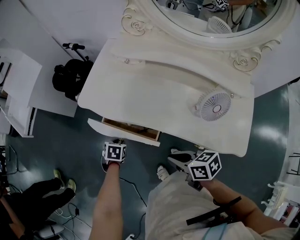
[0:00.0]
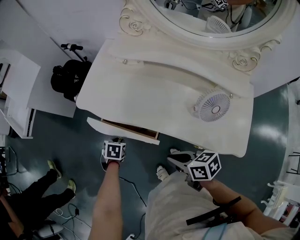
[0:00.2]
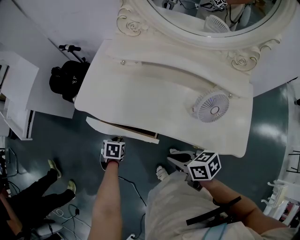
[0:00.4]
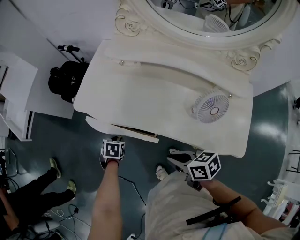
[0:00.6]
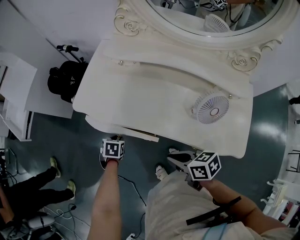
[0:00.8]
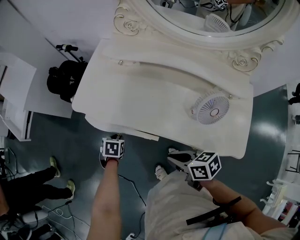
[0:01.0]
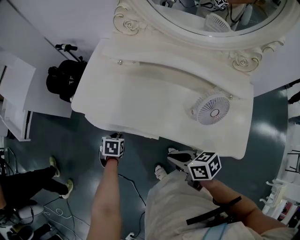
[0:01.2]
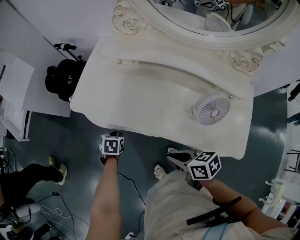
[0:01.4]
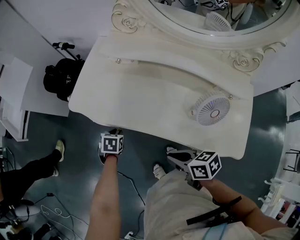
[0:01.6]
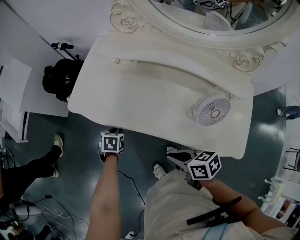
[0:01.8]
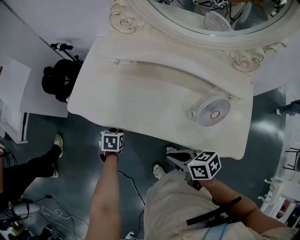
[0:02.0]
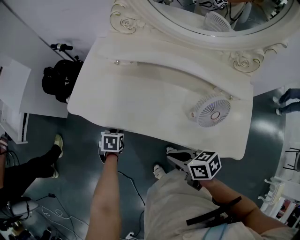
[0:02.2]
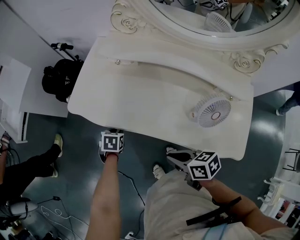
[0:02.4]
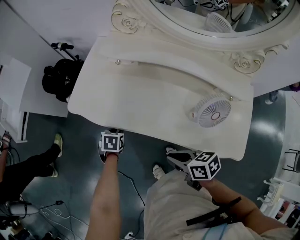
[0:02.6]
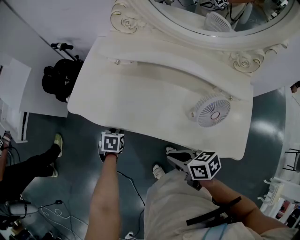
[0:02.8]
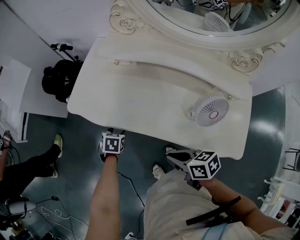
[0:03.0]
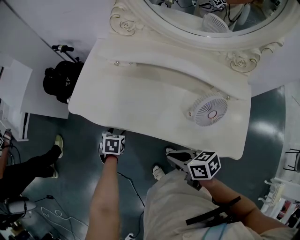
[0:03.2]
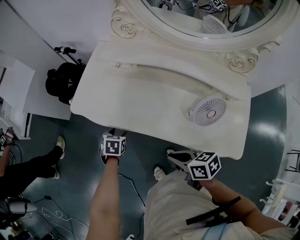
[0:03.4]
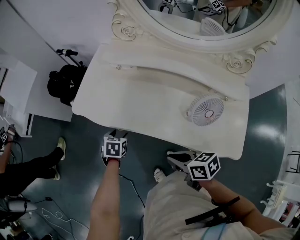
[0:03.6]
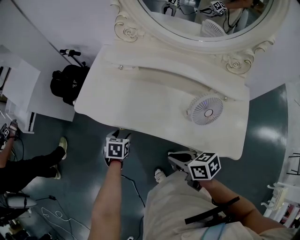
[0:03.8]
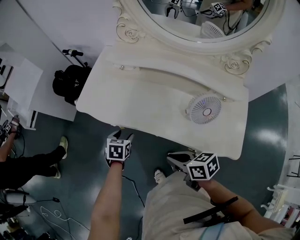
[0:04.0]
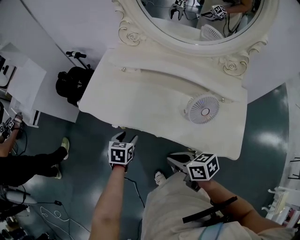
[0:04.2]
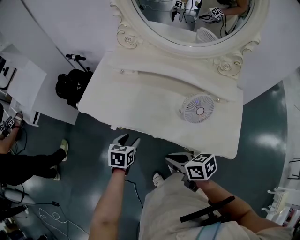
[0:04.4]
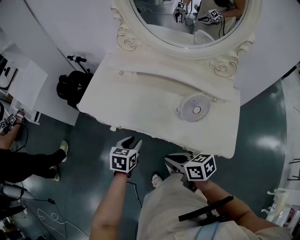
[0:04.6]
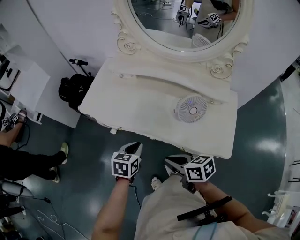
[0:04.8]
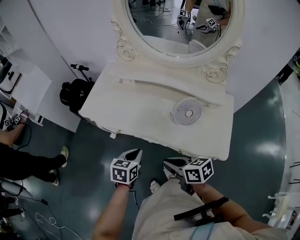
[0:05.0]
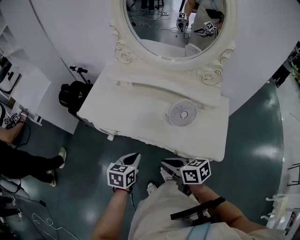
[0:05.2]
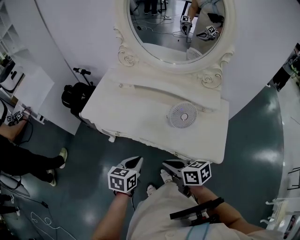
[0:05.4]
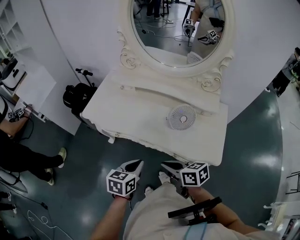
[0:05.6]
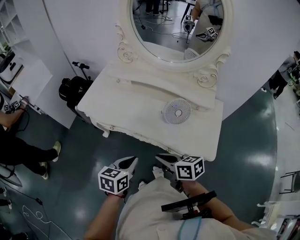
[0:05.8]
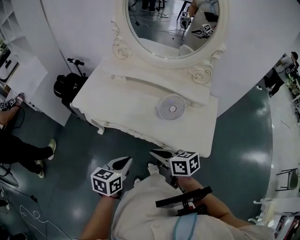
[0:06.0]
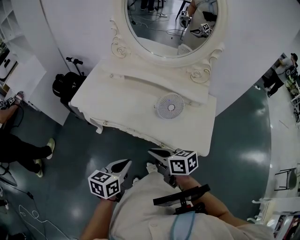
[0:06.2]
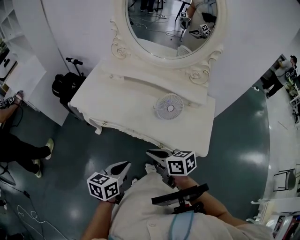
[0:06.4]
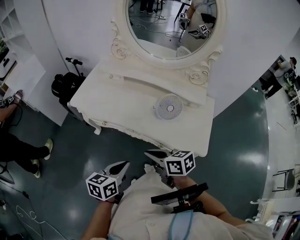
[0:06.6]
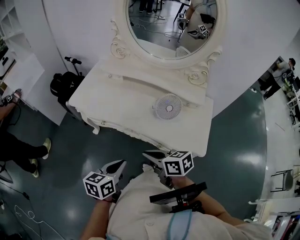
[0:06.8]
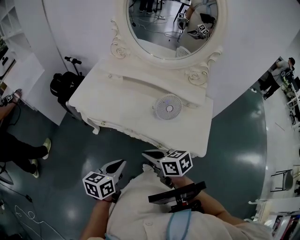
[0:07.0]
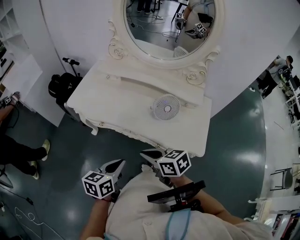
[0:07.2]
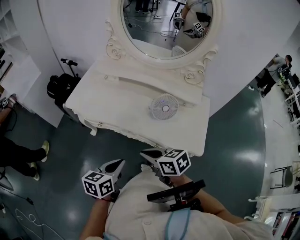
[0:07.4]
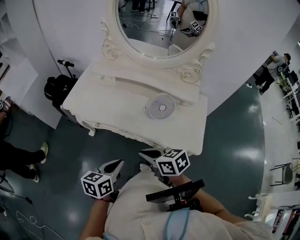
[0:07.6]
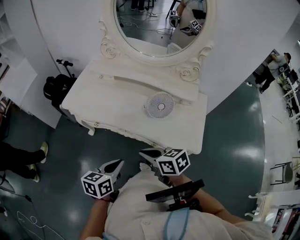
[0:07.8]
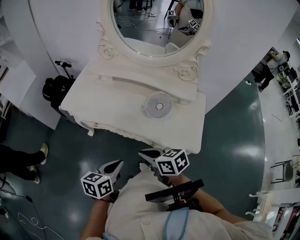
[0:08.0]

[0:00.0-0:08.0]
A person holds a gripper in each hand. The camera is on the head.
0.0 to 1.6 s: The left gripper heads to the right and forward, covering about 10 cm.
1.6 to 3.2 s: The left gripper opens up.
3.2 to 4.8 s: The left gripper heads upward, backward and to the right, covering roughly 25 cm, turns by some 20 degrees, and closes, while the right gripper shifts approximately 10 cm backward and upward.
4.8 to 6.4 s: The right gripper shifts about 5 cm upward, while the left gripper moves backward and upward, about 20 cm, and changes its angle by about 20 degrees.
6.4 to 8.0 s: The grippers make only small movements.

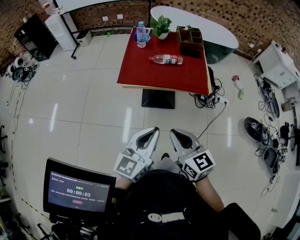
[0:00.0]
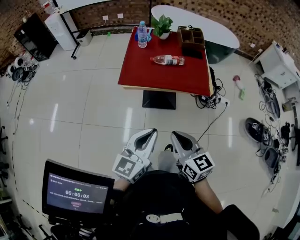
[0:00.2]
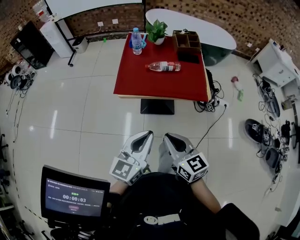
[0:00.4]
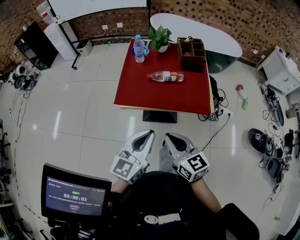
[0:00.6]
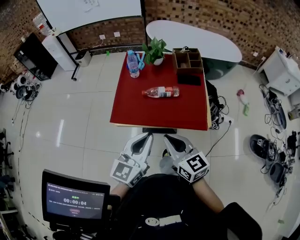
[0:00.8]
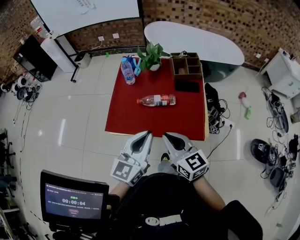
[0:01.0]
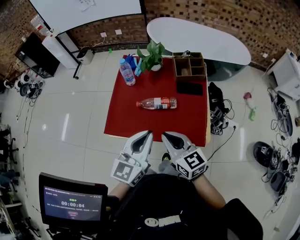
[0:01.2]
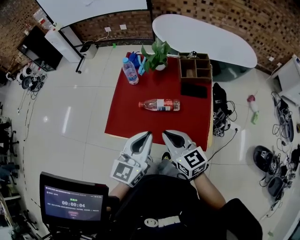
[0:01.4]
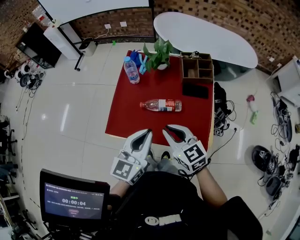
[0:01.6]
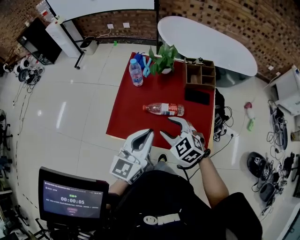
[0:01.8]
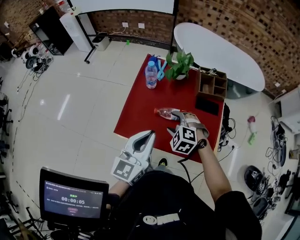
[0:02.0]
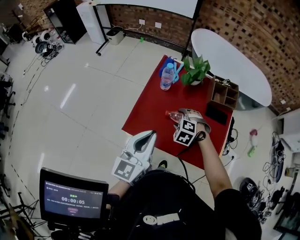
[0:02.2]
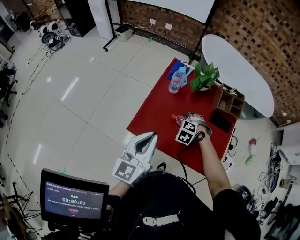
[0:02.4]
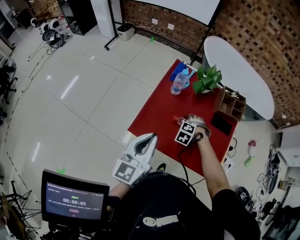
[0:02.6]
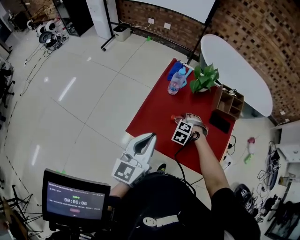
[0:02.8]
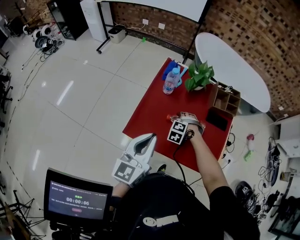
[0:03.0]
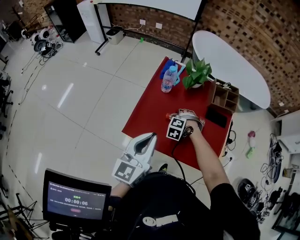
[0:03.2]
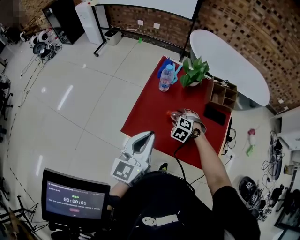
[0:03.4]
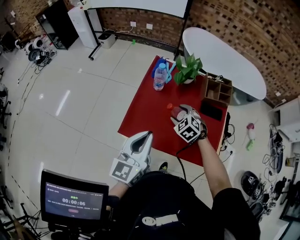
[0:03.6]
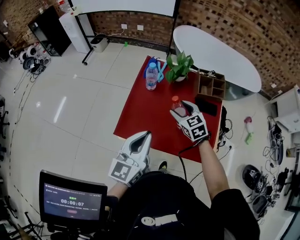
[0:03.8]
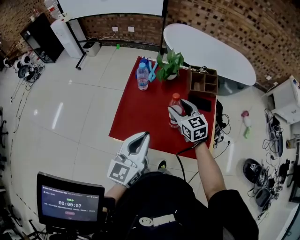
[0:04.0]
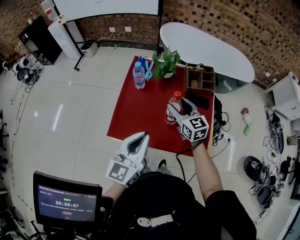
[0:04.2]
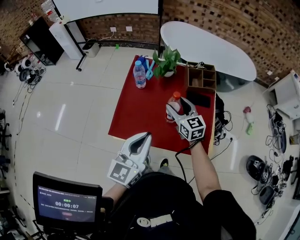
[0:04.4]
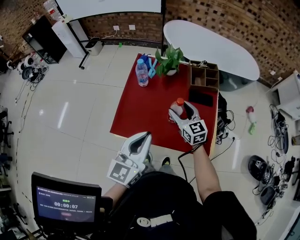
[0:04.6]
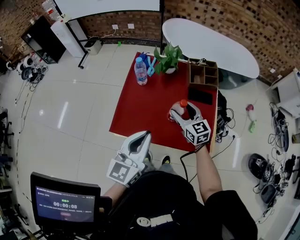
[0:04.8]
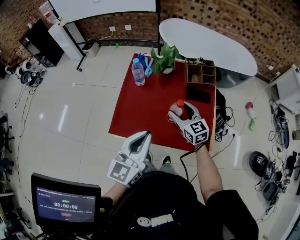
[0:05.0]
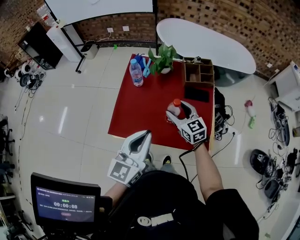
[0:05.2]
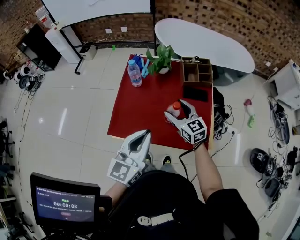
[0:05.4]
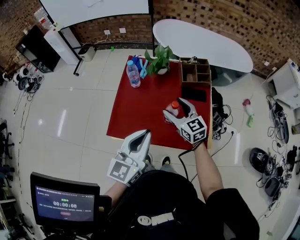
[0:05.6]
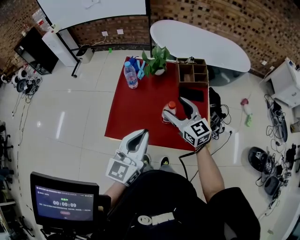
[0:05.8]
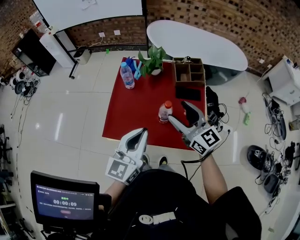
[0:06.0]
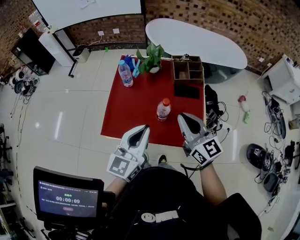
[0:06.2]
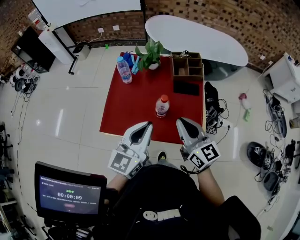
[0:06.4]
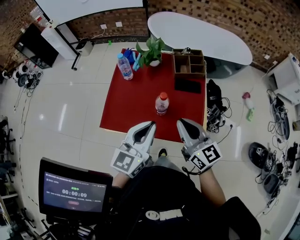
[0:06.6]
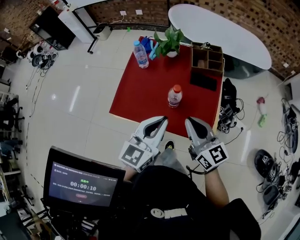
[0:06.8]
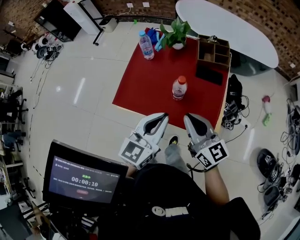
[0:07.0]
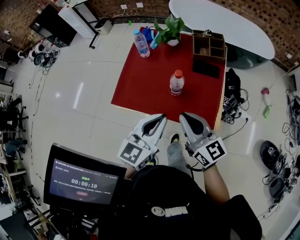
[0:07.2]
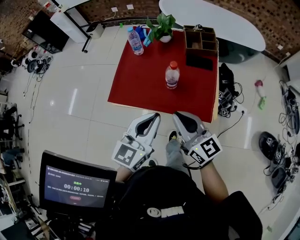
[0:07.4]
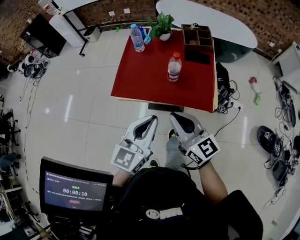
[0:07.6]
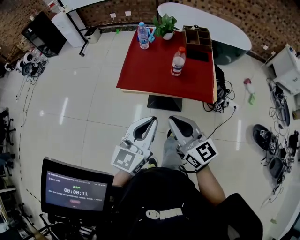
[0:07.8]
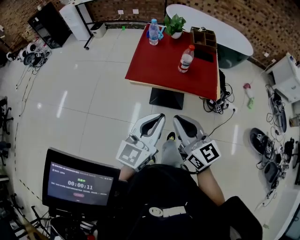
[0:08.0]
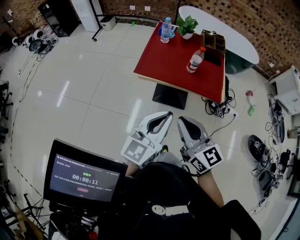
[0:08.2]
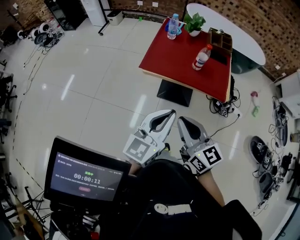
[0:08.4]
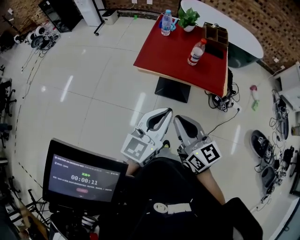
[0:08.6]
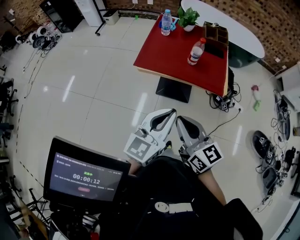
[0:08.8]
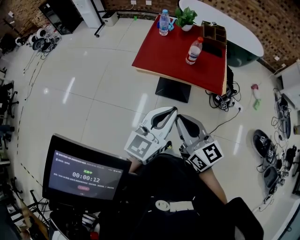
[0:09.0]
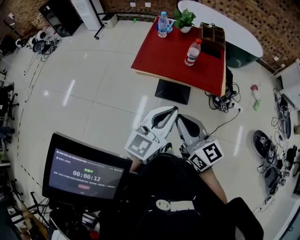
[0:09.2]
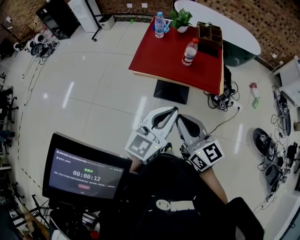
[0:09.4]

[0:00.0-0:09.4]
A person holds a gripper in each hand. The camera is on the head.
0.0 to 1.6 s: Both grippers travel together forward, some 35 cm.
1.6 to 3.2 s: The right gripper shifts roughly 25 cm downward, forward and to the left, tilts its fingers approximately 50 degrees downward, and opens up; the left gripper goes roughly 15 cm to the left.
3.2 to 4.8 s: The right gripper shifts about 20 cm upward and to the right, and angles its fingers upward, by roughly 50 degrees; the left gripper shifts approximately 10 cm to the right.
4.8 to 6.2 s: The left gripper changes place by about 5 cm. The right gripper goes some 15 cm upward and backward, and closes.
6.2 to 7.8 s: The right gripper travels backward and to the left by roughly 30 cm. The left gripper travels backward by roughly 25 cm.
7.8 to 9.4 s: The right gripper moves backward, about 5 cm. The left gripper moves some 5 cm.

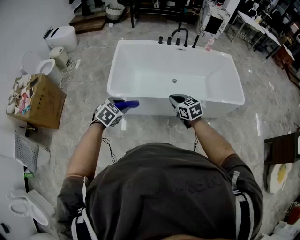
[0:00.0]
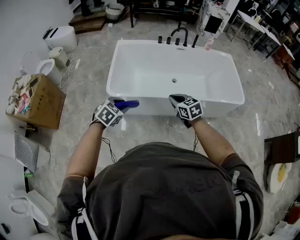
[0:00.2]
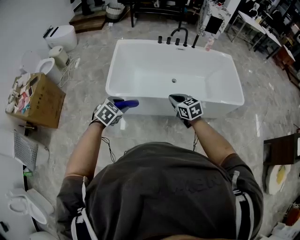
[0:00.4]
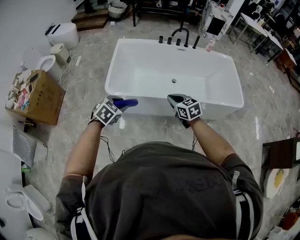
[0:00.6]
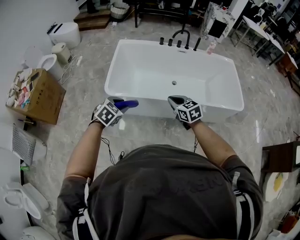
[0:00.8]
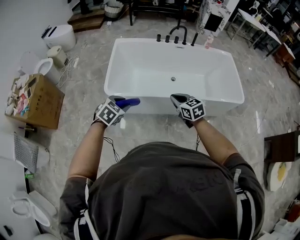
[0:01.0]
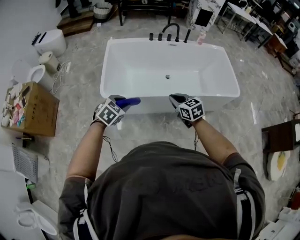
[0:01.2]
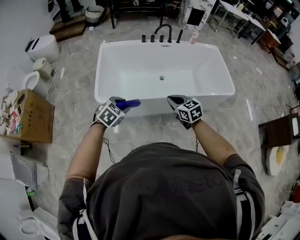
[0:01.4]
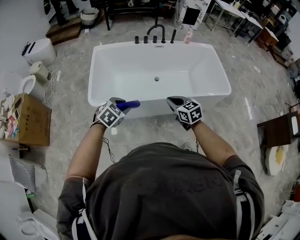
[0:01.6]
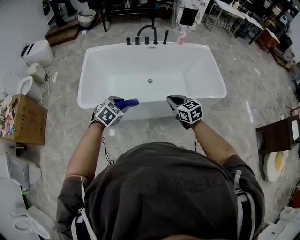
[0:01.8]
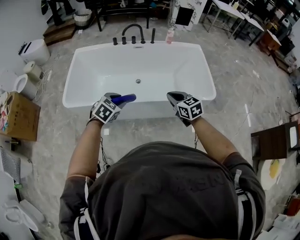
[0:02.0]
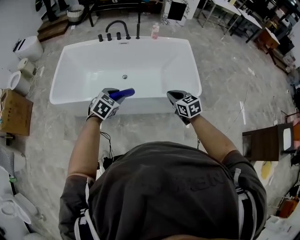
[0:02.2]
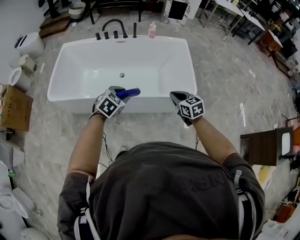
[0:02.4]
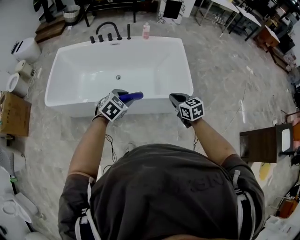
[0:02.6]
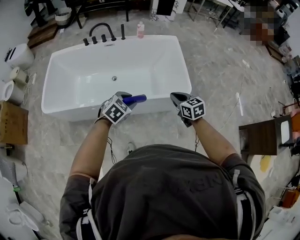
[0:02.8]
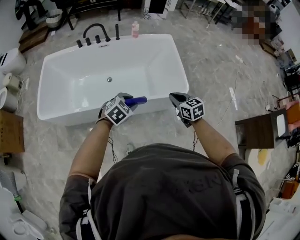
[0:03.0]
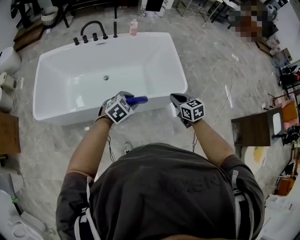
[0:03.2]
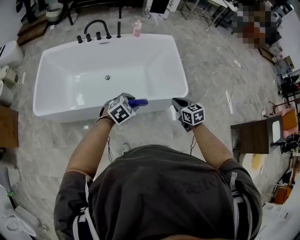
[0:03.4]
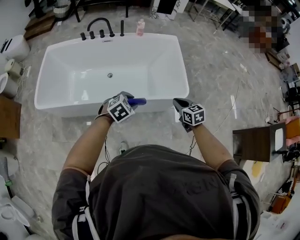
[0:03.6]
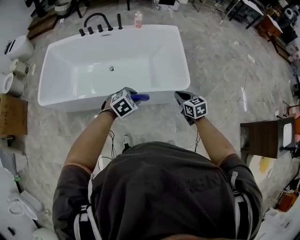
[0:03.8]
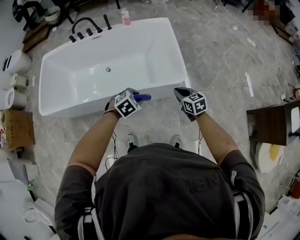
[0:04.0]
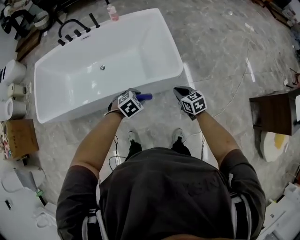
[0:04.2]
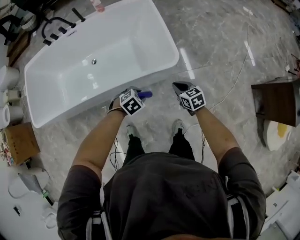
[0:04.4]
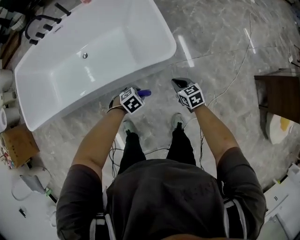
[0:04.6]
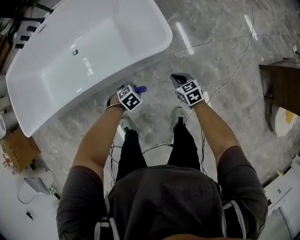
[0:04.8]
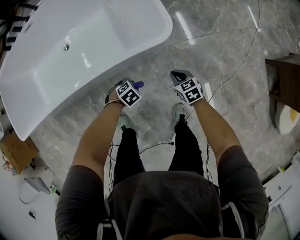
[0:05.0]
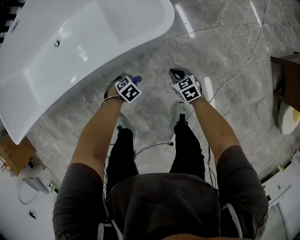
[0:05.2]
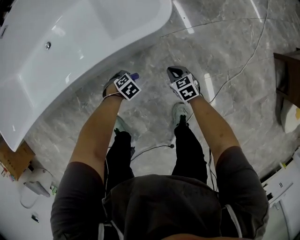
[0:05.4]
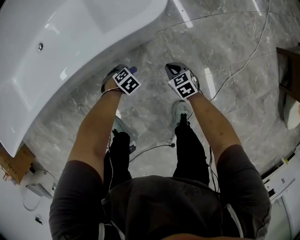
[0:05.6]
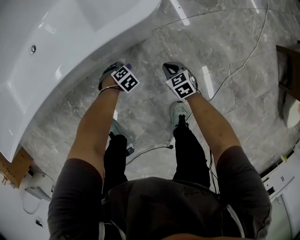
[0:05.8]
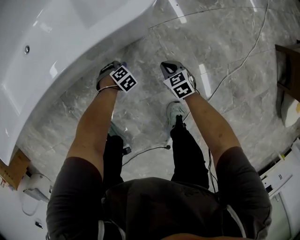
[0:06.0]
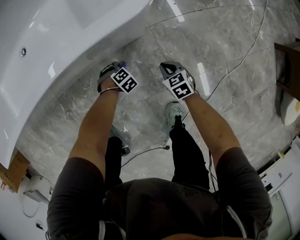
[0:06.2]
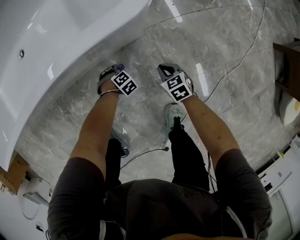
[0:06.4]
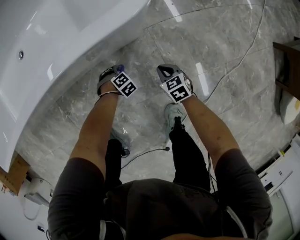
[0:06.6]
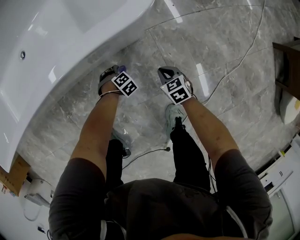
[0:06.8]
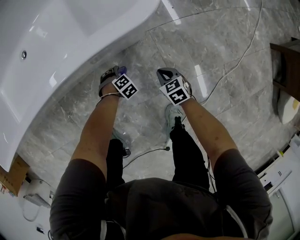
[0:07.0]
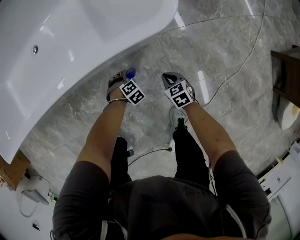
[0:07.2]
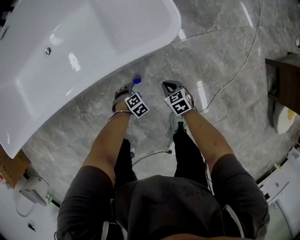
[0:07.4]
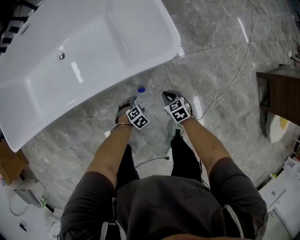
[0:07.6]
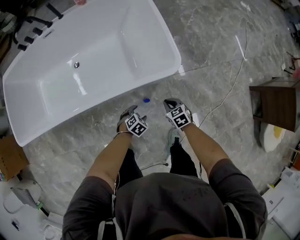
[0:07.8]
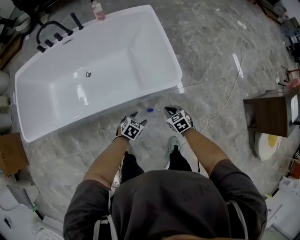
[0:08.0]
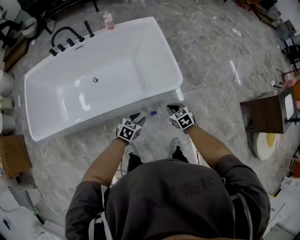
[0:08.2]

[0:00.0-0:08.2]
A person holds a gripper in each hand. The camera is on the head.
0.0 to 1.6 s: The left gripper moves to the right and forward, roughly 15 cm. Meanwhile the right gripper moves to the right, about 10 cm.
1.6 to 3.2 s: Both grippers are carried to the right, some 60 cm.
3.2 to 5.0 s: Both grippers travel together downward, approximately 50 cm. The left gripper points its fingers roughly 30 degrees further downward.
5.0 to 6.6 s: Both grippers travel together downward, approximately 30 cm. The left gripper turns by approximately 20 degrees.
6.6 to 8.2 s: Both grippers move upward, approximately 60 cm. The left gripper tips its fingers upward by roughly 40 degrees, and opens, then closes again.
